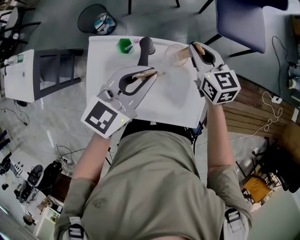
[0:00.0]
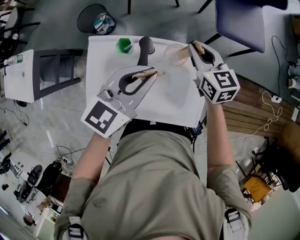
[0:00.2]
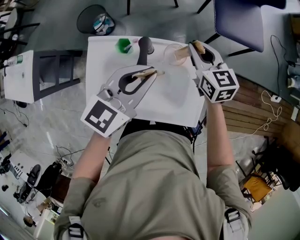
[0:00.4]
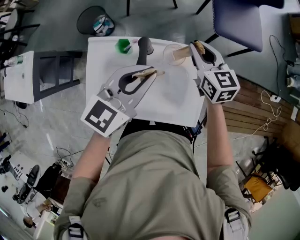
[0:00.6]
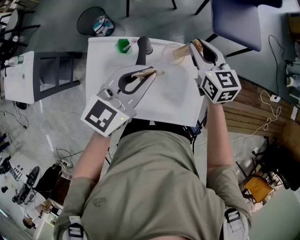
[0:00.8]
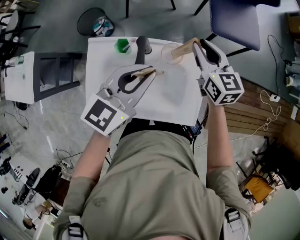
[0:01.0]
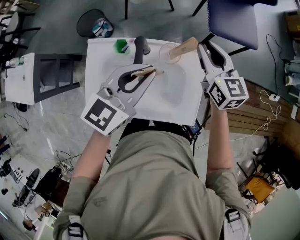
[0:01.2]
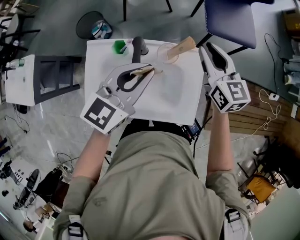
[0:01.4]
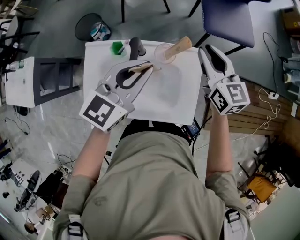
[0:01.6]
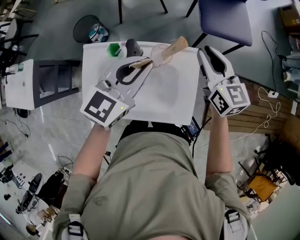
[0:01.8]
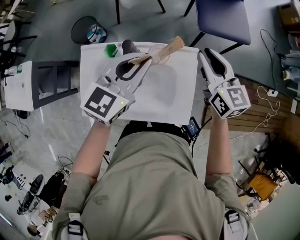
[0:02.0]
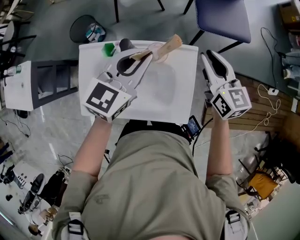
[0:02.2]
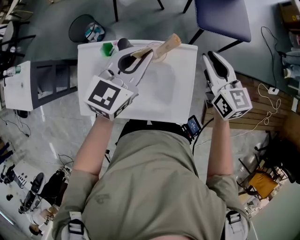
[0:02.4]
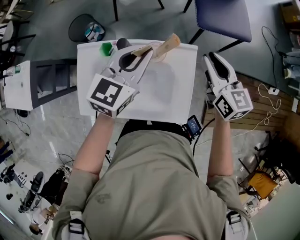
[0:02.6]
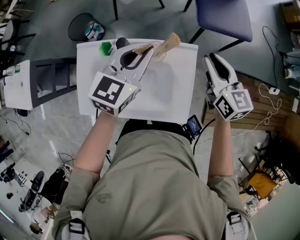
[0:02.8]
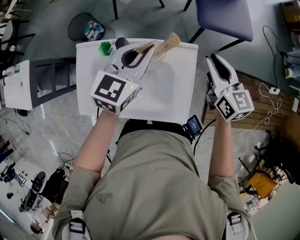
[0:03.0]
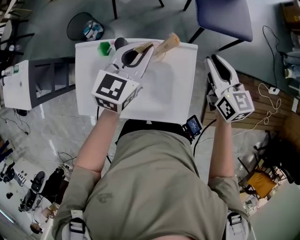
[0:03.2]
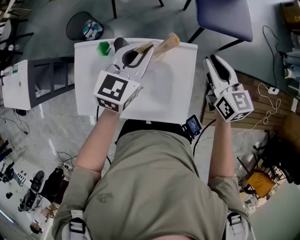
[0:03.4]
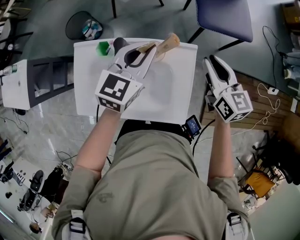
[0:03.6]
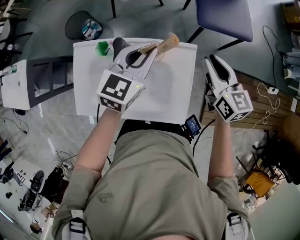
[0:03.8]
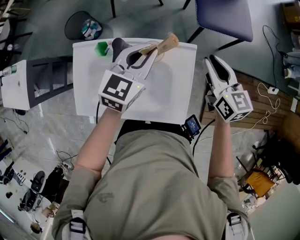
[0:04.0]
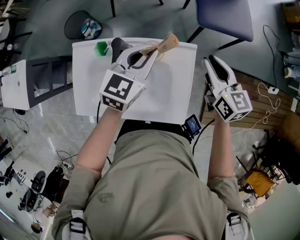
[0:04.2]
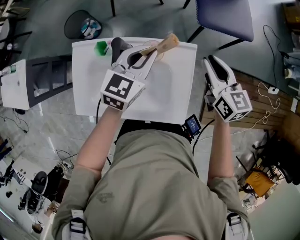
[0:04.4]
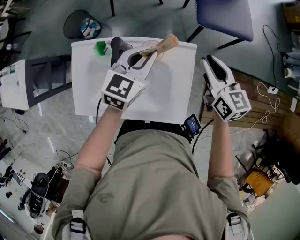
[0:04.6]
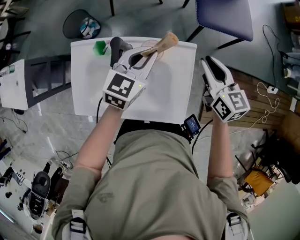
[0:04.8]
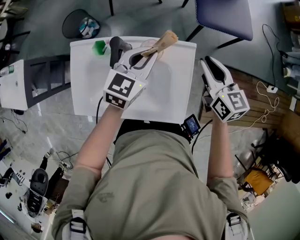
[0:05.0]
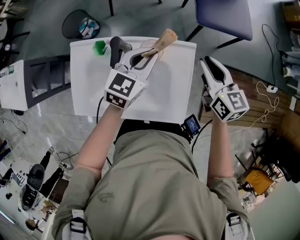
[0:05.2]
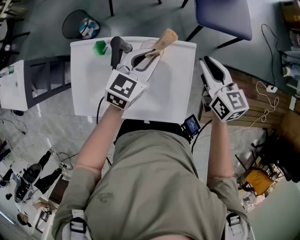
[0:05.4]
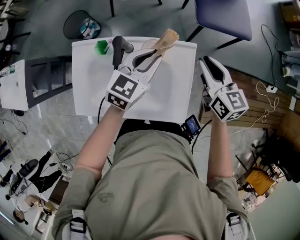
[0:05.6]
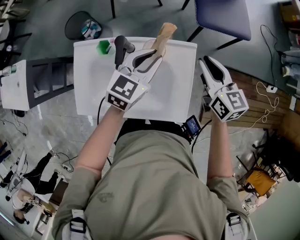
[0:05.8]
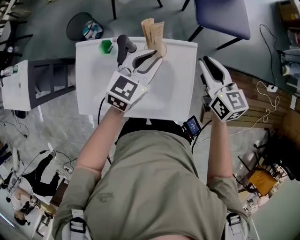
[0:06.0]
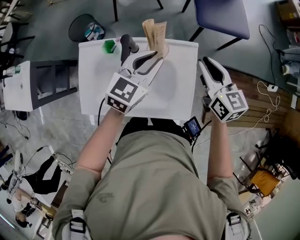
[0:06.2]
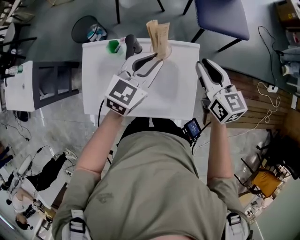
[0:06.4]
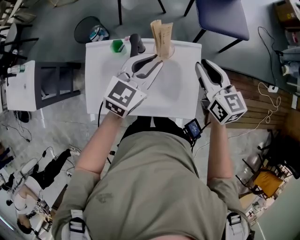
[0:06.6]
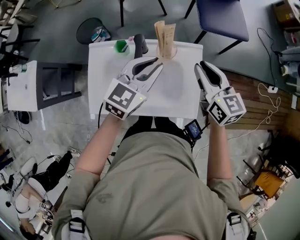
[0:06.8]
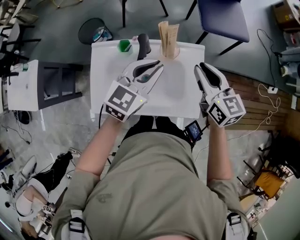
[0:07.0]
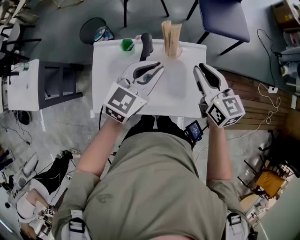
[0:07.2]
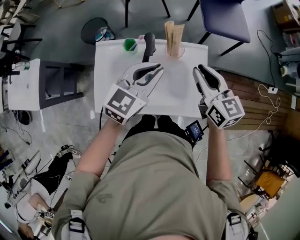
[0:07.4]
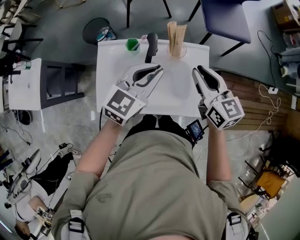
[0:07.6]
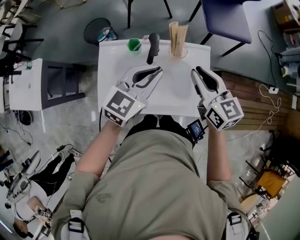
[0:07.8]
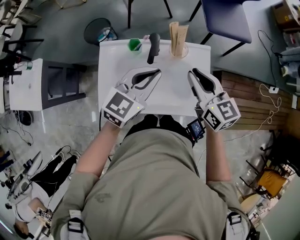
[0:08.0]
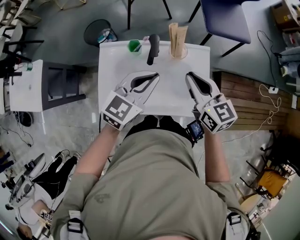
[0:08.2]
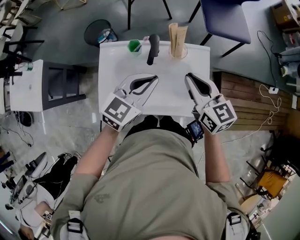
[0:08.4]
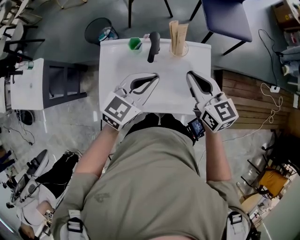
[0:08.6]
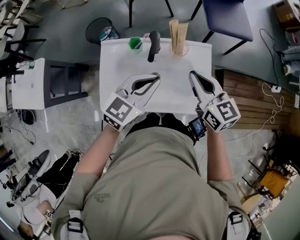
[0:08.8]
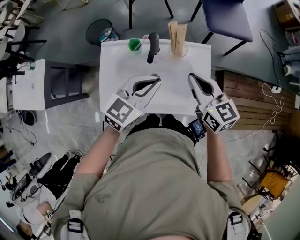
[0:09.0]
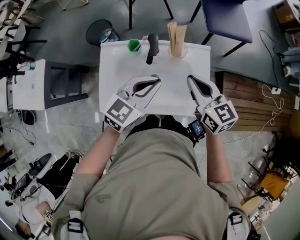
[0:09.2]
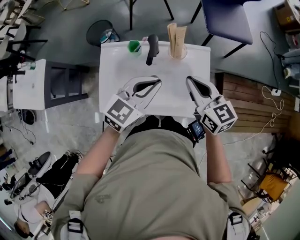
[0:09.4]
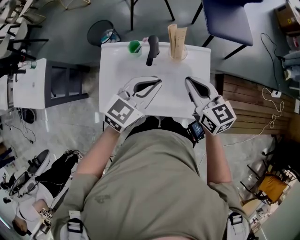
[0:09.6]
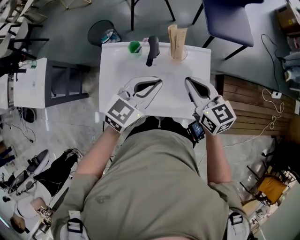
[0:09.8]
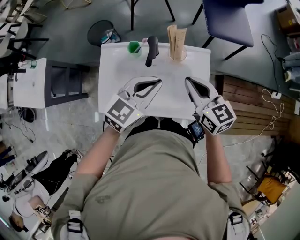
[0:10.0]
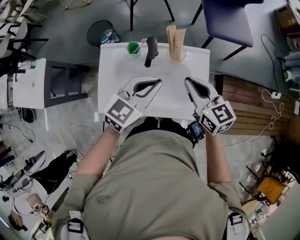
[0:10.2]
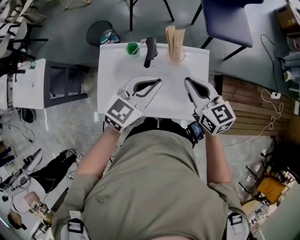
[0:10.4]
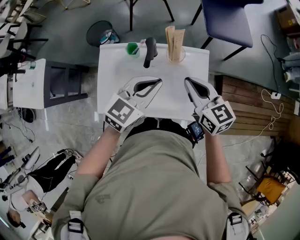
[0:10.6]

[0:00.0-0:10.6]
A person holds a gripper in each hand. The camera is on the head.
0:00.0 to 0:01.6: The right gripper moves upward and to the right, some 10 cm.
0:01.6 to 0:03.0: The right gripper is displaced to the right by roughly 5 cm; the left gripper goes about 5 cm forward.
0:03.0 to 0:04.6: The left gripper shifts about 5 cm downward.
0:04.6 to 0:06.0: The grippers move only a little.
0:06.0 to 0:07.6: The left gripper shifts approximately 15 cm backward, to the left and upward. Meanwhile the right gripper heads to the left, backward and upward, covering about 15 cm.
0:07.6 to 0:10.6: The grippers move only a little.

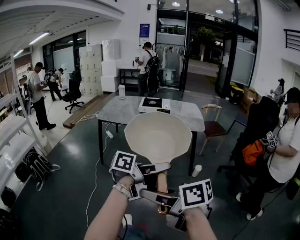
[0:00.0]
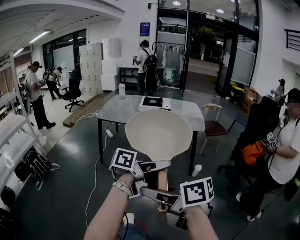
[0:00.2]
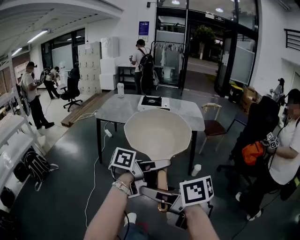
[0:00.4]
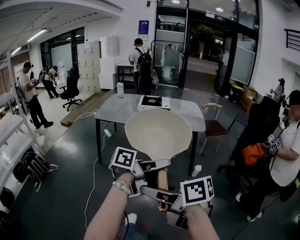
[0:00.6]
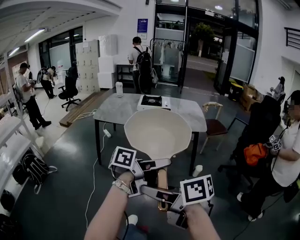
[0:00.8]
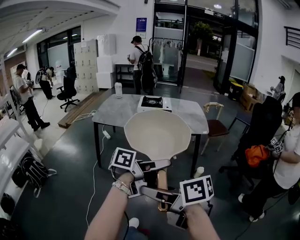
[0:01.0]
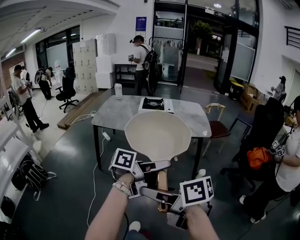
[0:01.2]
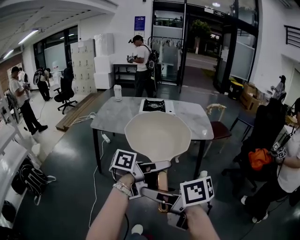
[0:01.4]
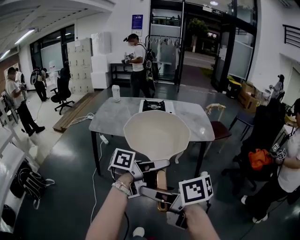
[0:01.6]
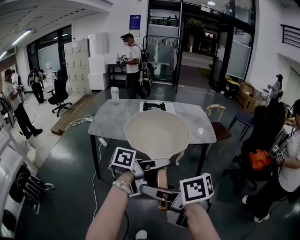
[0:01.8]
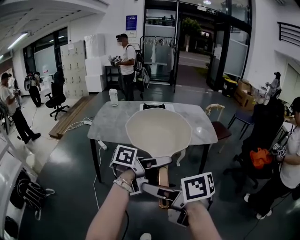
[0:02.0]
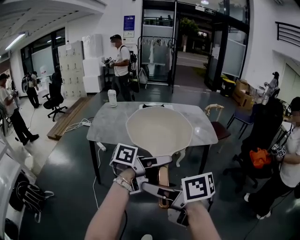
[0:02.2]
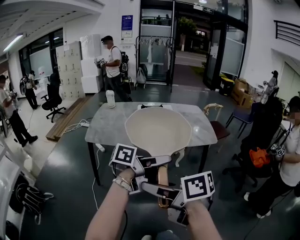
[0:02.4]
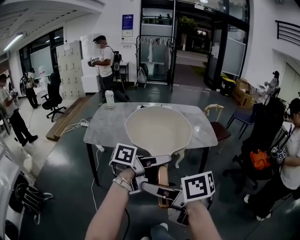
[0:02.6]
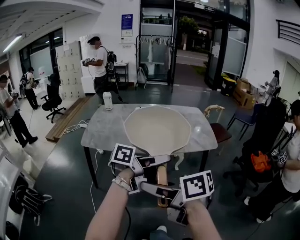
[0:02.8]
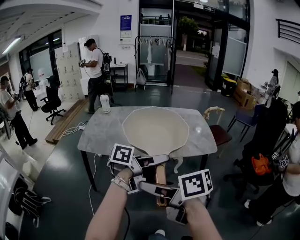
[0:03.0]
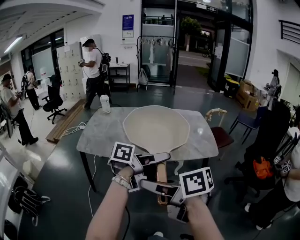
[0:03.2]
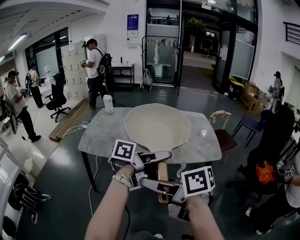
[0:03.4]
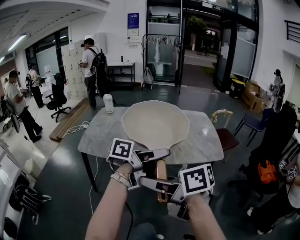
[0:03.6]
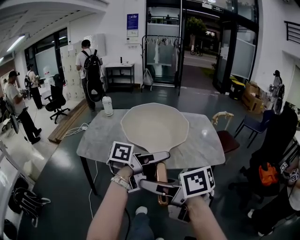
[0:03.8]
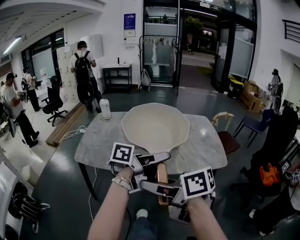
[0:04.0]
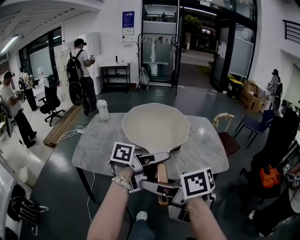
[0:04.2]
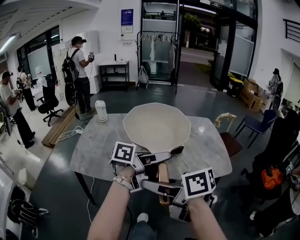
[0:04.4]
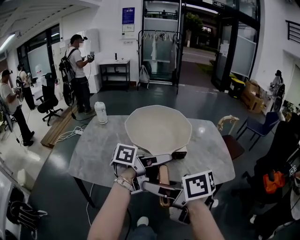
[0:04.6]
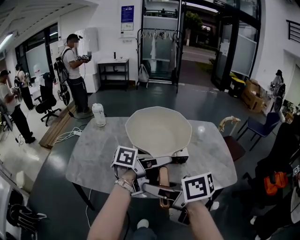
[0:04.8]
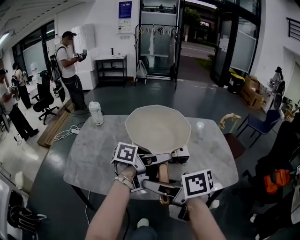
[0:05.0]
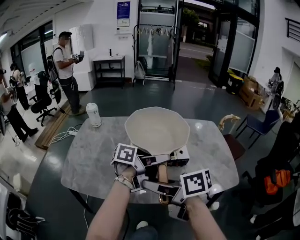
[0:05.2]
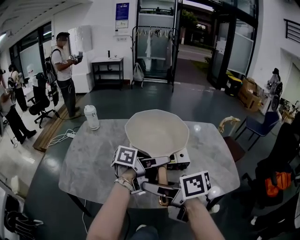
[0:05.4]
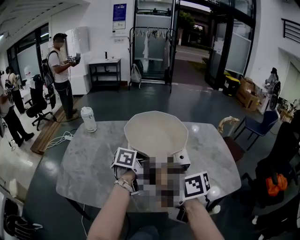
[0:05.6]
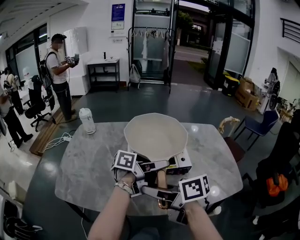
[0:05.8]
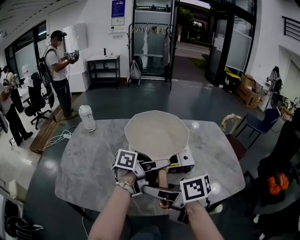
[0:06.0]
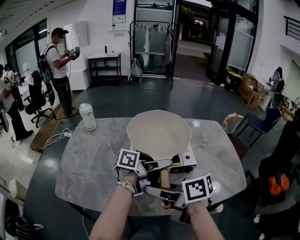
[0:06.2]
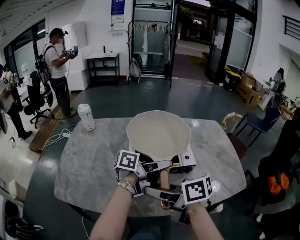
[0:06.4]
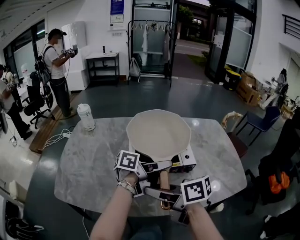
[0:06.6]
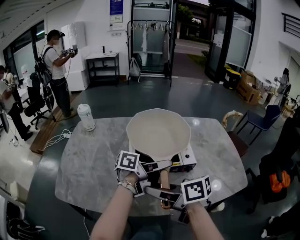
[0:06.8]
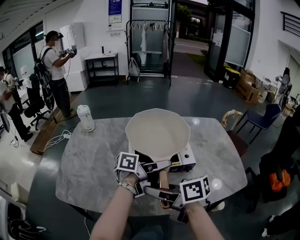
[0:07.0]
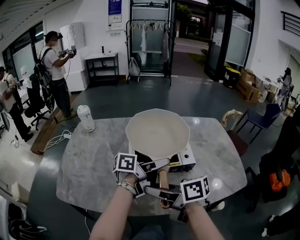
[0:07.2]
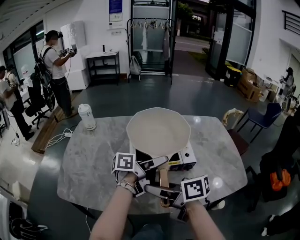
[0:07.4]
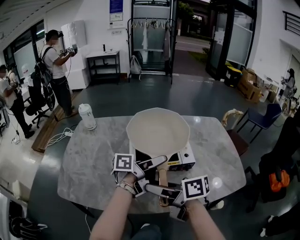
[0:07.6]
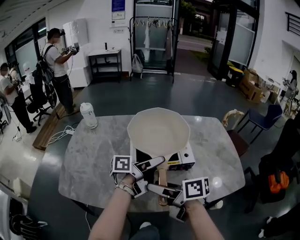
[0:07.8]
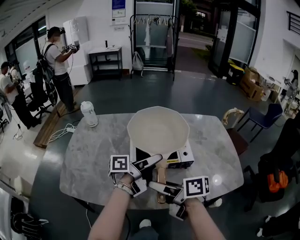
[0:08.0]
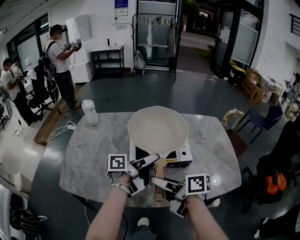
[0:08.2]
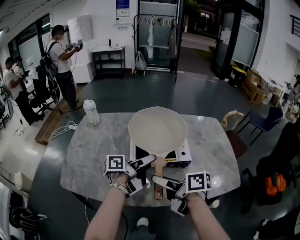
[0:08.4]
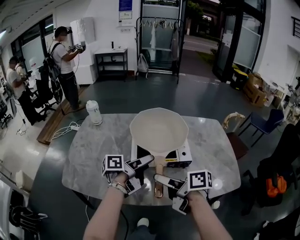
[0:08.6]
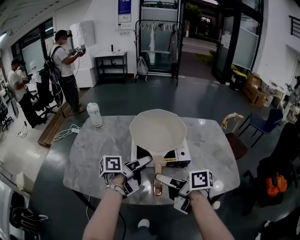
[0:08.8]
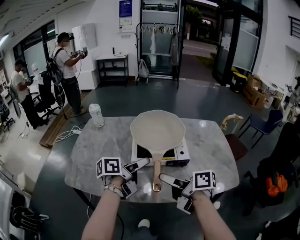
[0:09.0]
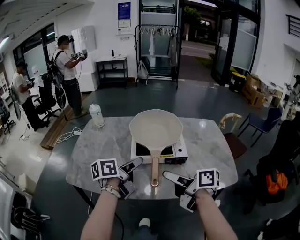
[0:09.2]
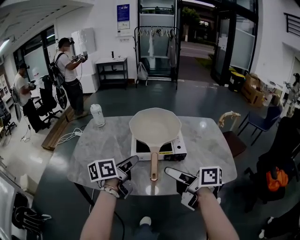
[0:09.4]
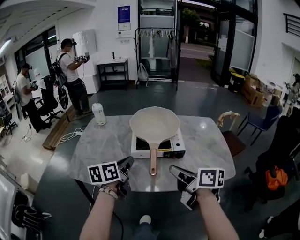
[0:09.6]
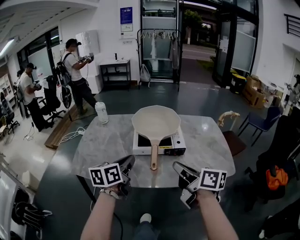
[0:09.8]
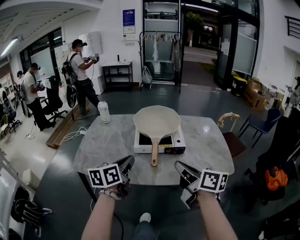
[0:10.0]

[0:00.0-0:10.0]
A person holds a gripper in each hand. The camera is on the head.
0:00.0 to 0:01.4: The right gripper ends up about 20 cm from where it was. Meanwhile the left gripper changes place by roughly 15 cm.
0:01.4 to 0:02.8: The left gripper changes place by about 15 cm. Meanwhile the right gripper changes place by roughly 15 cm.
0:02.8 to 0:04.2: The right gripper ends up some 20 cm from where it was; the left gripper ends up roughly 20 cm from where it was.
0:04.2 to 0:05.8: The right gripper moves roughly 25 cm, while the left gripper changes place by approximately 20 cm.
0:05.8 to 0:07.2: There are only small adjustments of the grippers.
0:07.2 to 0:08.6: The right gripper changes place by some 5 cm, and opens its fingers, while the left gripper moves roughly 5 cm, and rotates some 20 degrees.
0:08.6 to 0:10.0: The left gripper travels backward, to the left and upward by roughly 15 cm, twists some 40 degrees clockwise, seen from behind, and closes its fingers, while the right gripper travels backward, upward and to the right by approximately 15 cm, rotates some 30 degrees, and closes.

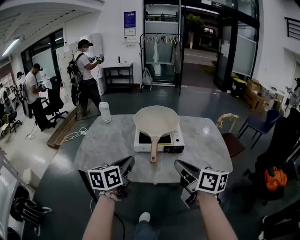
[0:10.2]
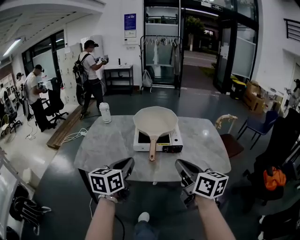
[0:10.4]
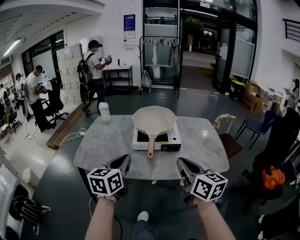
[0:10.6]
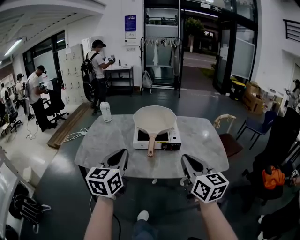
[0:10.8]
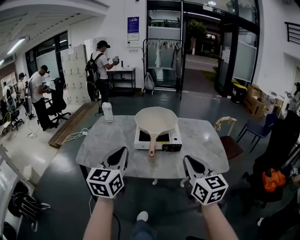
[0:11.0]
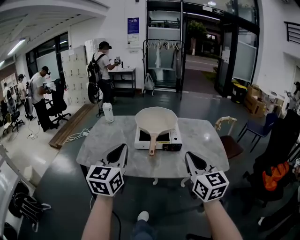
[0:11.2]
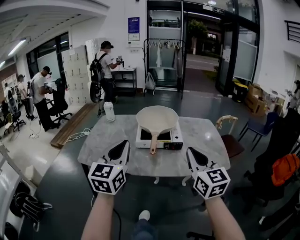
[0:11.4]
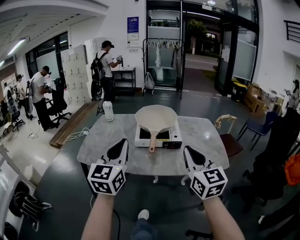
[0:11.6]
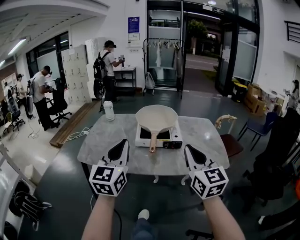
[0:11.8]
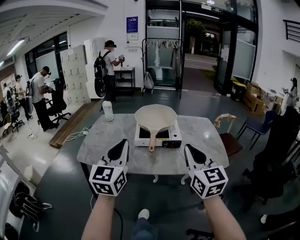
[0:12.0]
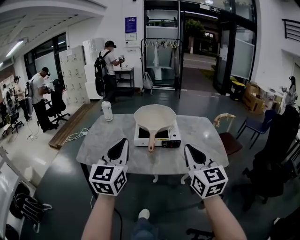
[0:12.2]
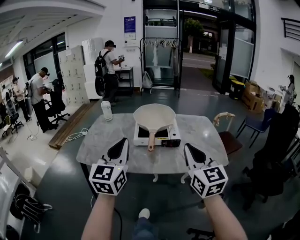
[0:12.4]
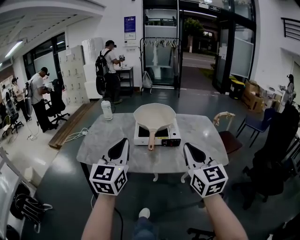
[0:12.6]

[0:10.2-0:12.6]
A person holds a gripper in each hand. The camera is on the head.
0:10.2 to 0:11.4: The left gripper goes about 10 cm upward and backward, and rotates roughly 40 degrees, while the right gripper moves upward, about 5 cm, and changes its angle by about 40 degrees.
0:11.4 to 0:12.6: There are only small adjustments of the grippers.
